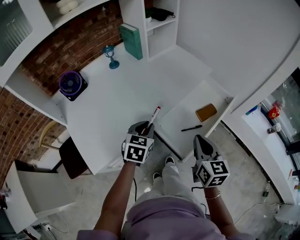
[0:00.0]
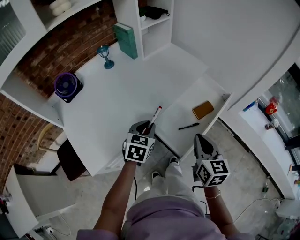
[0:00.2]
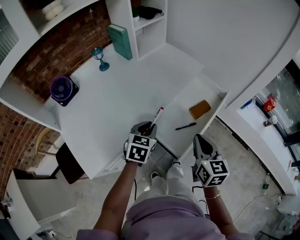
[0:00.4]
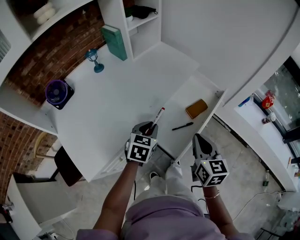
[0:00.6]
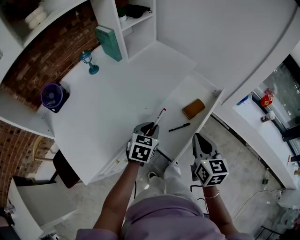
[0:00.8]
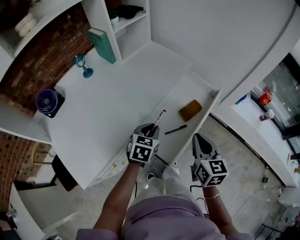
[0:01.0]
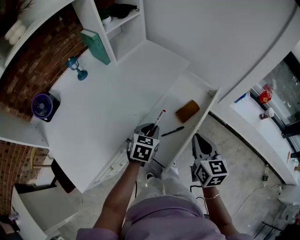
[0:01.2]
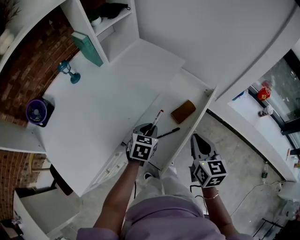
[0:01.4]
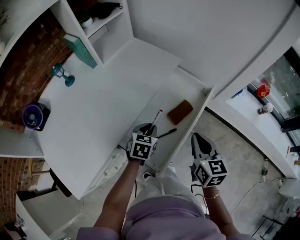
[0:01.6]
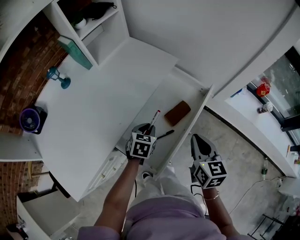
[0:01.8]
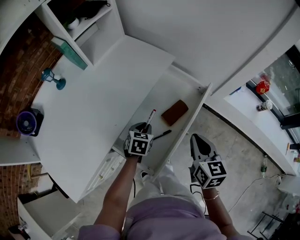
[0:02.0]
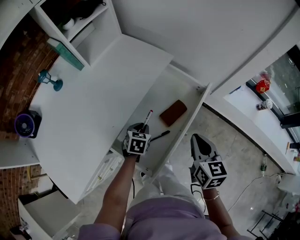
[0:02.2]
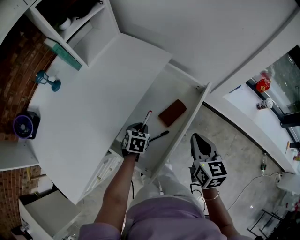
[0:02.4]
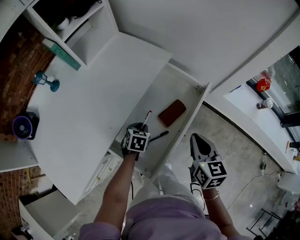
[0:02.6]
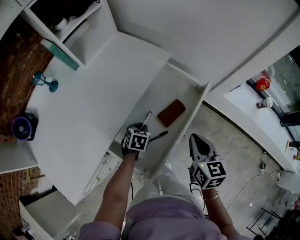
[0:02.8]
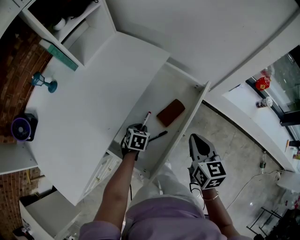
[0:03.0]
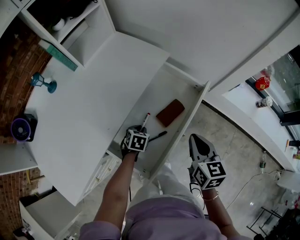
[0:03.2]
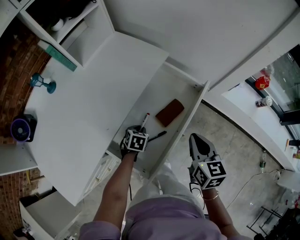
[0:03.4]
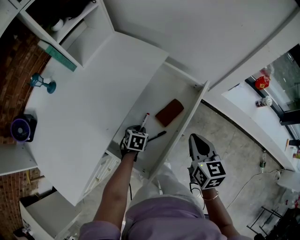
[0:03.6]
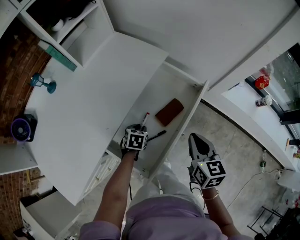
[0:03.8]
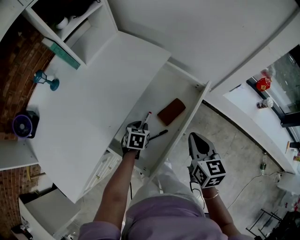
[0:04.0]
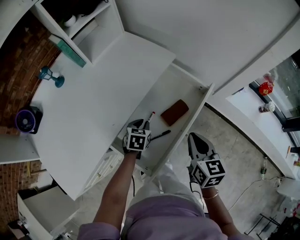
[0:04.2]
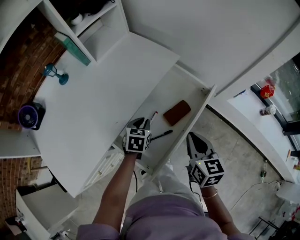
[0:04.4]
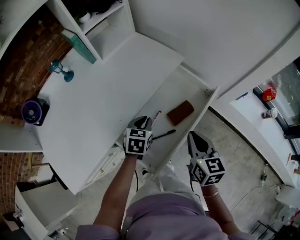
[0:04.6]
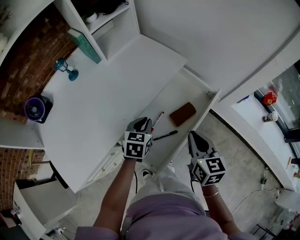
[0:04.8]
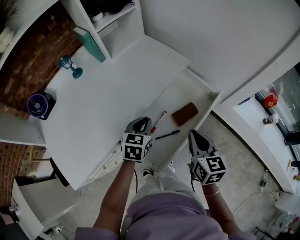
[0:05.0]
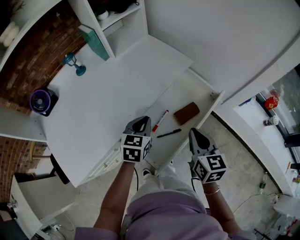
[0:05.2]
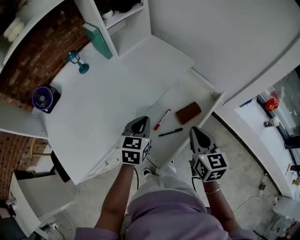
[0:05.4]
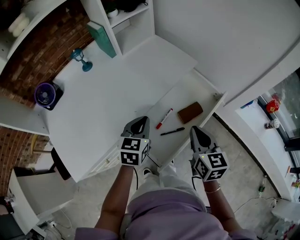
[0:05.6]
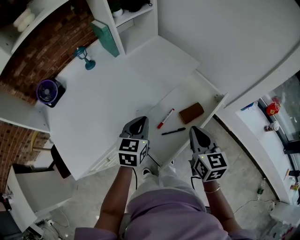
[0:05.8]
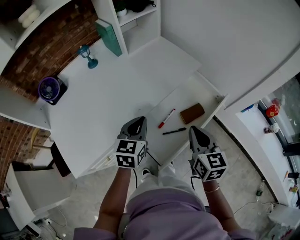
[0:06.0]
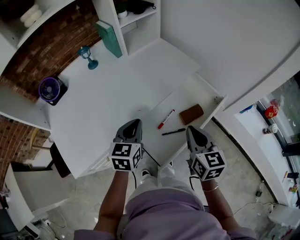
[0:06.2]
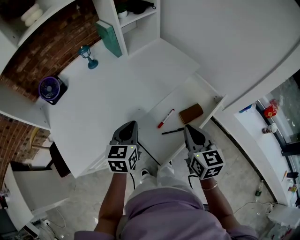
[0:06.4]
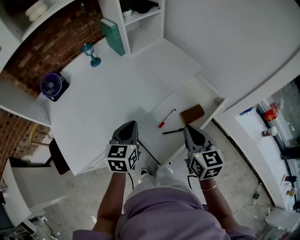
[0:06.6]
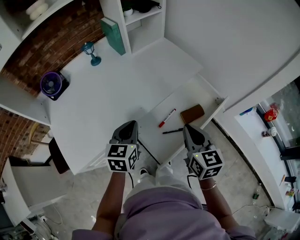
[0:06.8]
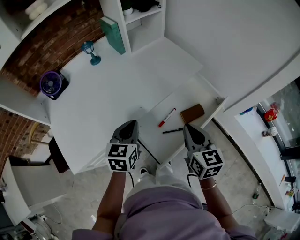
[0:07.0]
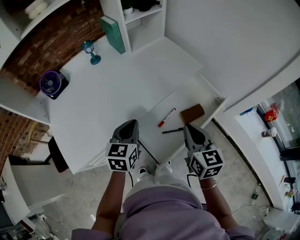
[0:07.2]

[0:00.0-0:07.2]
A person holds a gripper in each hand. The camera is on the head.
0:00.0 to 0:01.4: The left gripper shifts roughly 20 cm to the right, forward and downward; the right gripper shifts some 15 cm to the right and forward.
0:01.4 to 0:02.8: The left gripper goes about 15 cm downward and forward, while the right gripper travels forward and to the right by about 10 cm.
0:02.8 to 0:04.4: The left gripper heads upward, covering about 10 cm.
0:04.4 to 0:05.8: The left gripper shifts some 20 cm upward, to the left and backward, and turns by roughly 20 degrees, while the right gripper is displaced to the left by about 5 cm.
0:05.8 to 0:07.2: The left gripper travels to the left by some 5 cm.

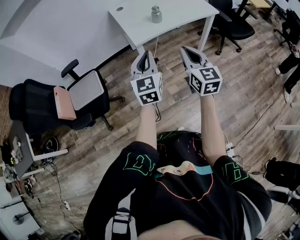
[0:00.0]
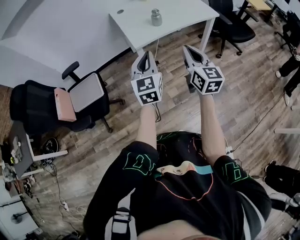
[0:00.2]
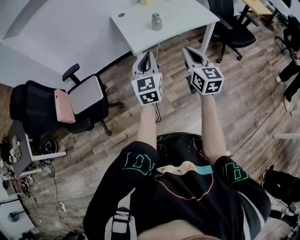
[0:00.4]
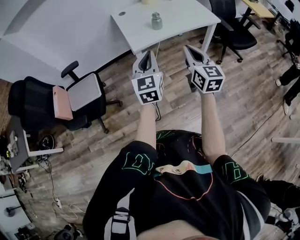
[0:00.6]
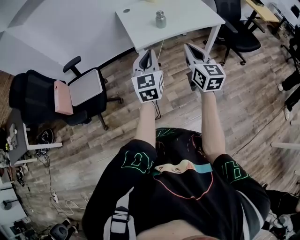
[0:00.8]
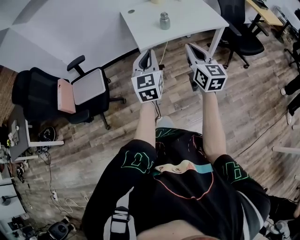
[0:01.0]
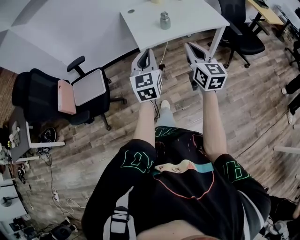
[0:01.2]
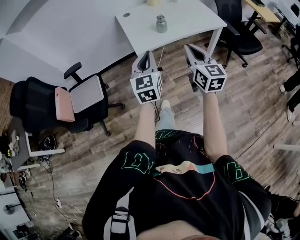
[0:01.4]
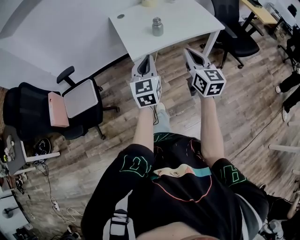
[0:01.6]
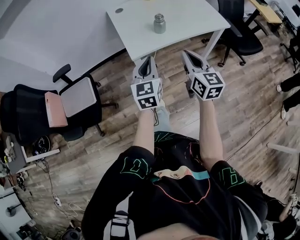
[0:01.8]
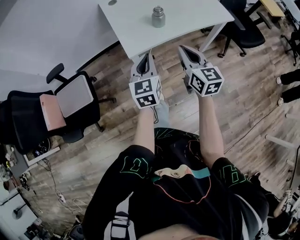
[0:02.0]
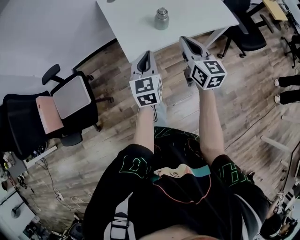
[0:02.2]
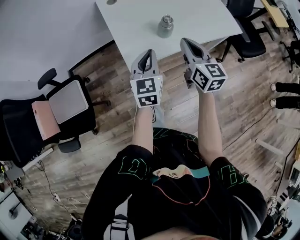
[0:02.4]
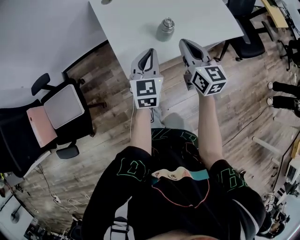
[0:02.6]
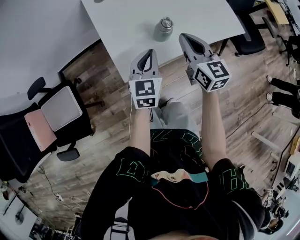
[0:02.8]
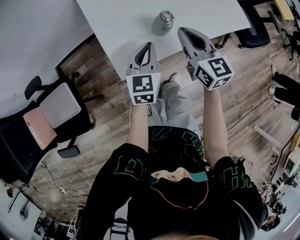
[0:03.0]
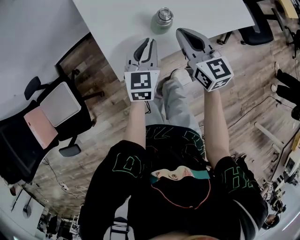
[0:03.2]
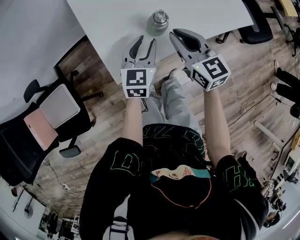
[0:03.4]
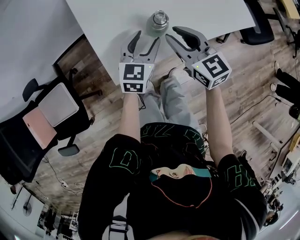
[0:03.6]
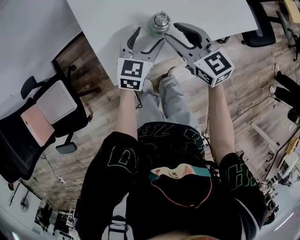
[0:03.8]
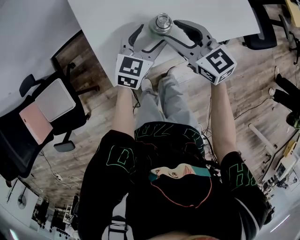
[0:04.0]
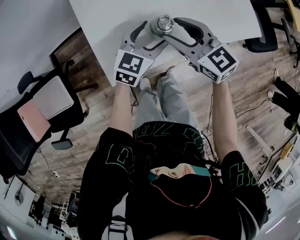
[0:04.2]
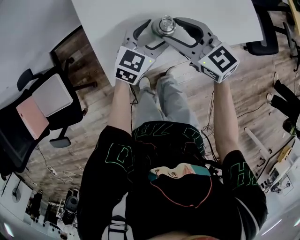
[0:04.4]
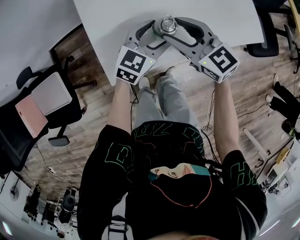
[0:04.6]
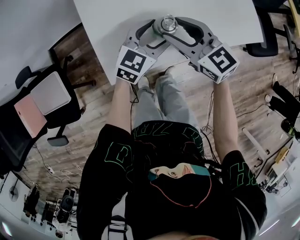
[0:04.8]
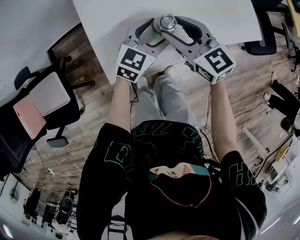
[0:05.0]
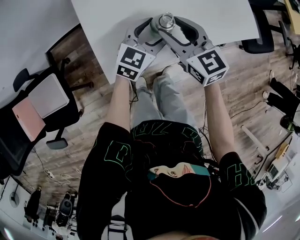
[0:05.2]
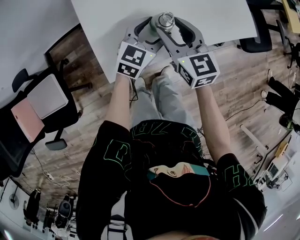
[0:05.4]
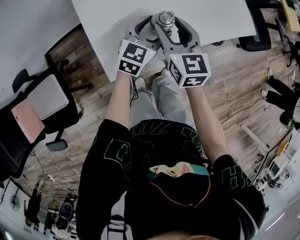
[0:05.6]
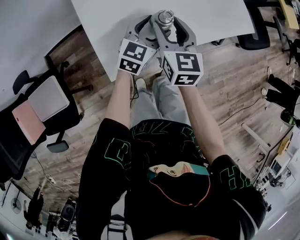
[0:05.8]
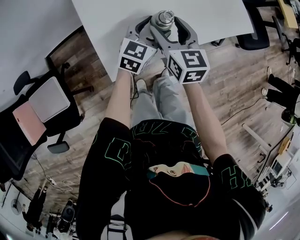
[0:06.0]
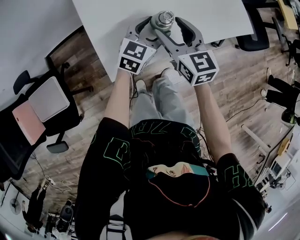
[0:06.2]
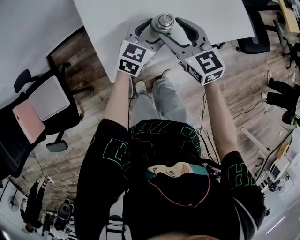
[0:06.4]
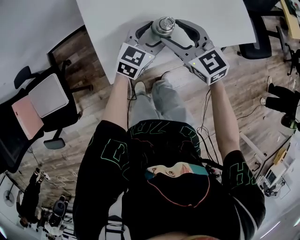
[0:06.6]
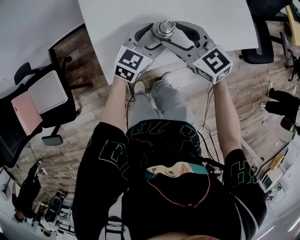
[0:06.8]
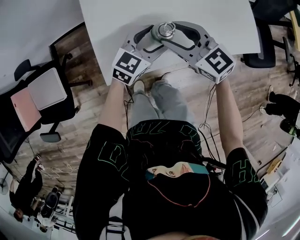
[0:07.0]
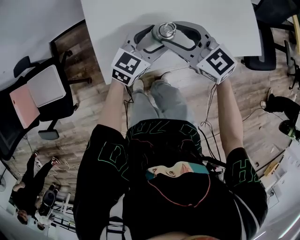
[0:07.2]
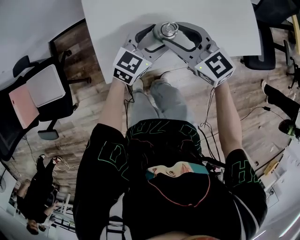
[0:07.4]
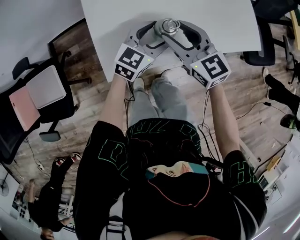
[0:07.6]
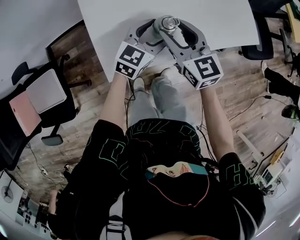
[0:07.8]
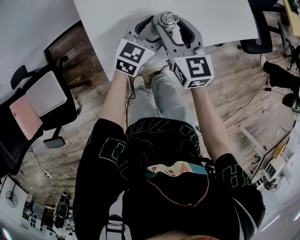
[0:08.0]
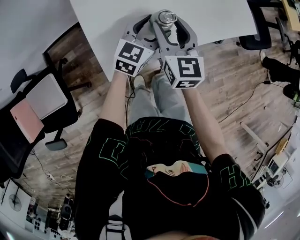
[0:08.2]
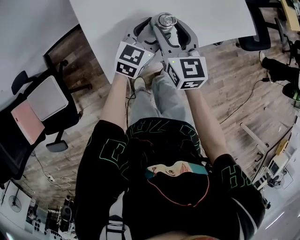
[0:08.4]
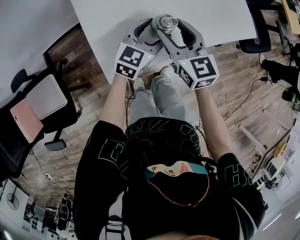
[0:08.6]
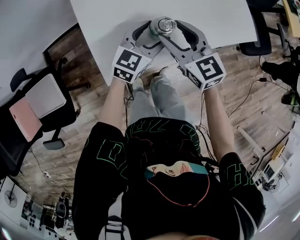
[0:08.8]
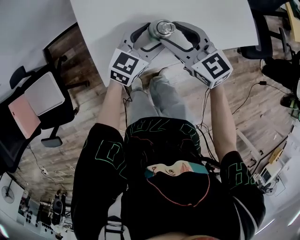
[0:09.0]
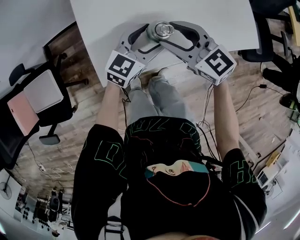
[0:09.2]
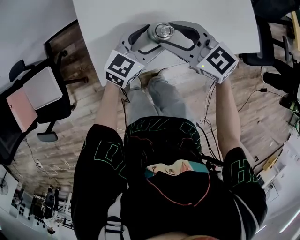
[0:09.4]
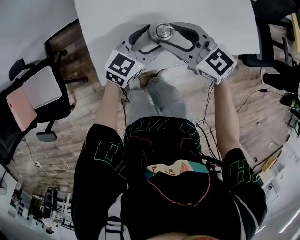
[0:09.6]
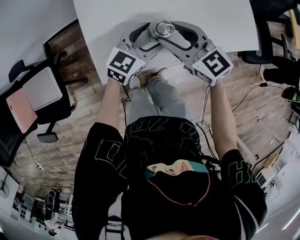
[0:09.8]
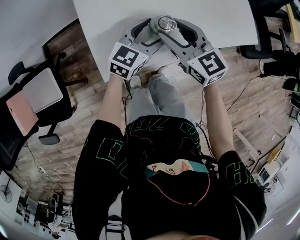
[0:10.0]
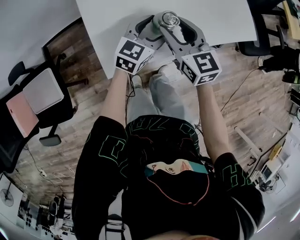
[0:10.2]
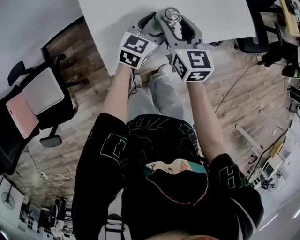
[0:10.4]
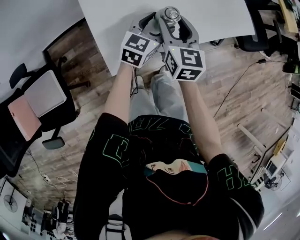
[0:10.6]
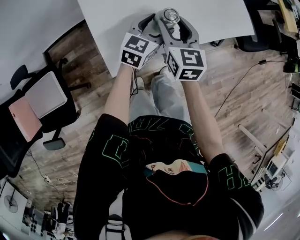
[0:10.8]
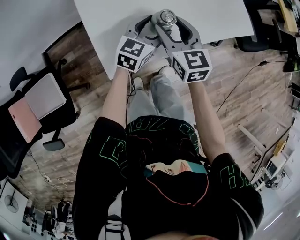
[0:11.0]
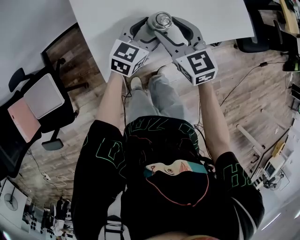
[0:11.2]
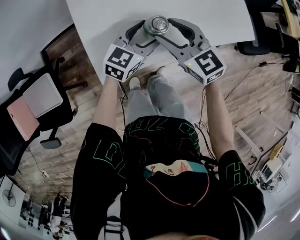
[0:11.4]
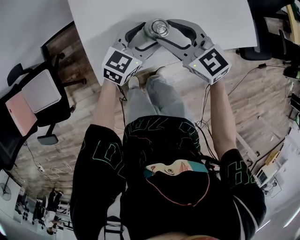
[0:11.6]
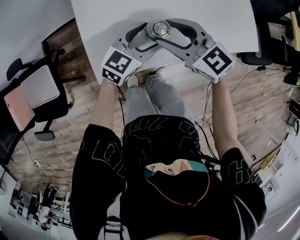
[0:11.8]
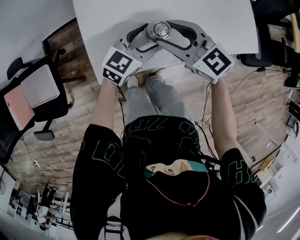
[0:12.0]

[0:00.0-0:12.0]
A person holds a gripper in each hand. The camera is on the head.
0:00.0 to 0:01.6: The left gripper is displaced forward by approximately 10 cm. Meanwhile the right gripper heads forward and to the right, covering some 10 cm.
0:01.6 to 0:03.0: The left gripper heads forward and downward, covering some 30 cm. Meanwhile the right gripper moves forward, roughly 30 cm.
0:03.0 to 0:04.4: The right gripper moves some 5 cm, turns by roughly 30 degrees, and opens its fingers; the left gripper travels forward and to the right by roughly 10 cm, swivels approximately 20 degrees, and opens.
0:04.4 to 0:06.0: The right gripper swivels approximately 40 degrees.
0:06.0 to 0:07.6: The right gripper changes its angle by about 30 degrees.
0:09.0 to 0:10.4: The right gripper swivels approximately 30 degrees.
0:10.4 to 0:12.0: The right gripper swivels approximately 50 degrees.

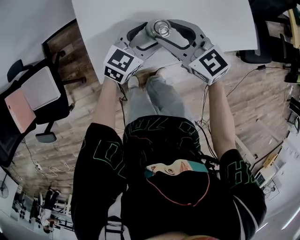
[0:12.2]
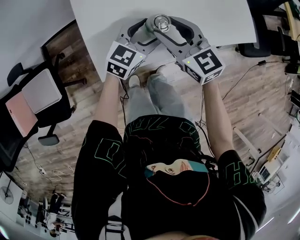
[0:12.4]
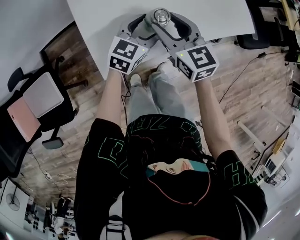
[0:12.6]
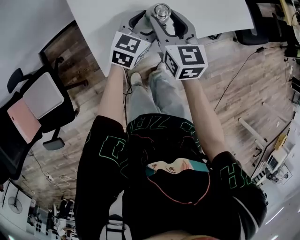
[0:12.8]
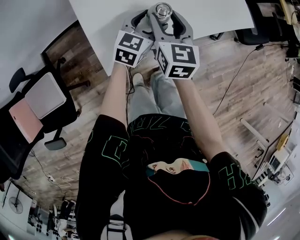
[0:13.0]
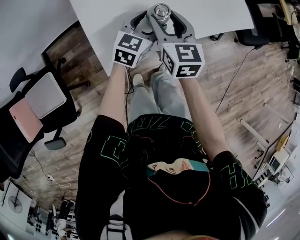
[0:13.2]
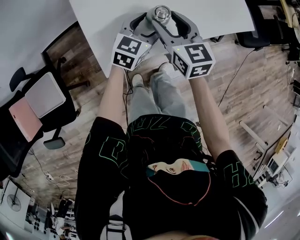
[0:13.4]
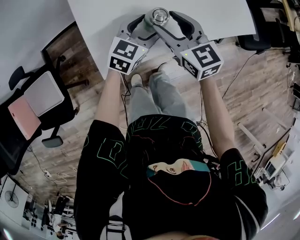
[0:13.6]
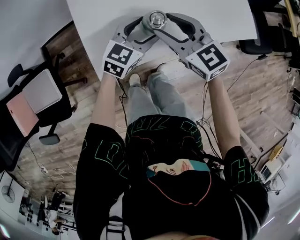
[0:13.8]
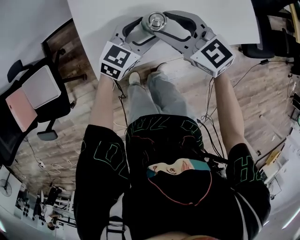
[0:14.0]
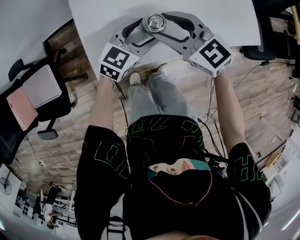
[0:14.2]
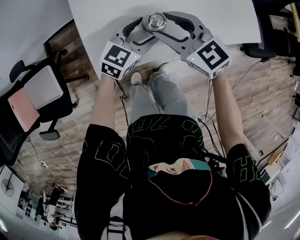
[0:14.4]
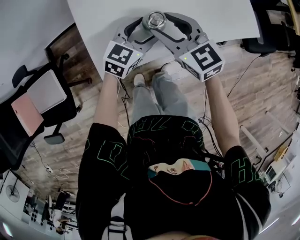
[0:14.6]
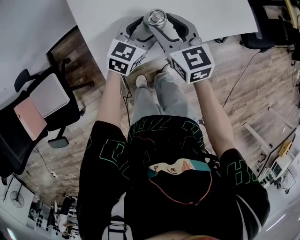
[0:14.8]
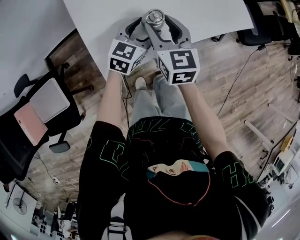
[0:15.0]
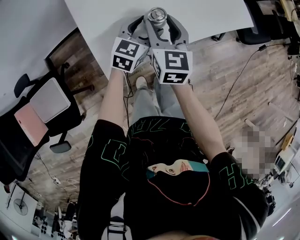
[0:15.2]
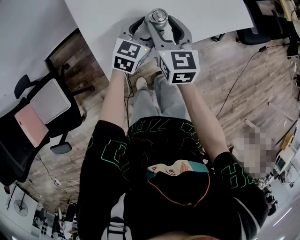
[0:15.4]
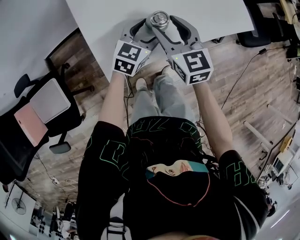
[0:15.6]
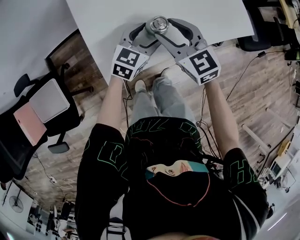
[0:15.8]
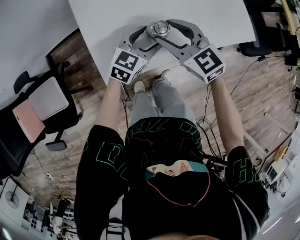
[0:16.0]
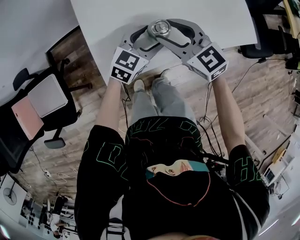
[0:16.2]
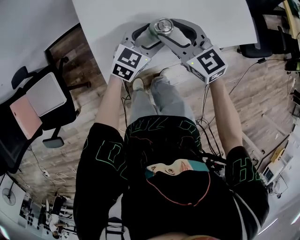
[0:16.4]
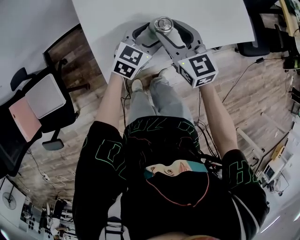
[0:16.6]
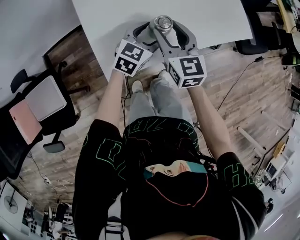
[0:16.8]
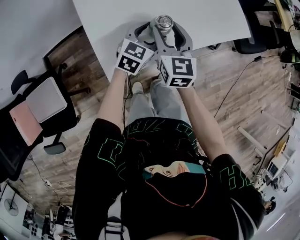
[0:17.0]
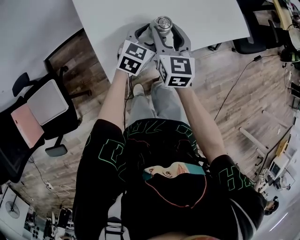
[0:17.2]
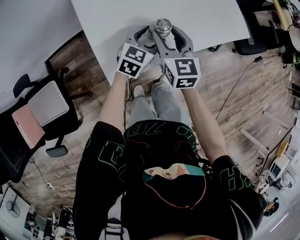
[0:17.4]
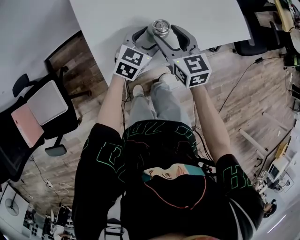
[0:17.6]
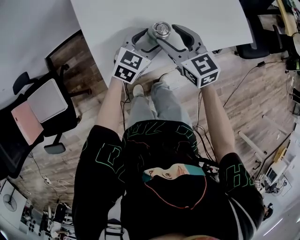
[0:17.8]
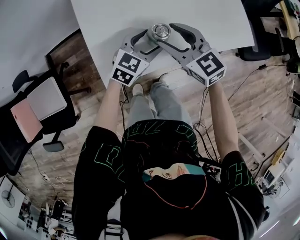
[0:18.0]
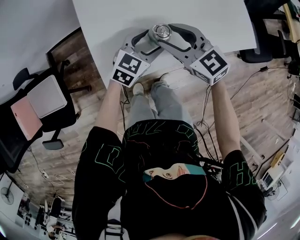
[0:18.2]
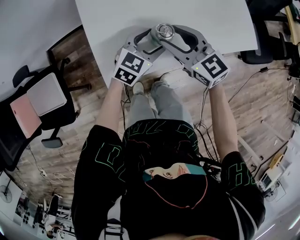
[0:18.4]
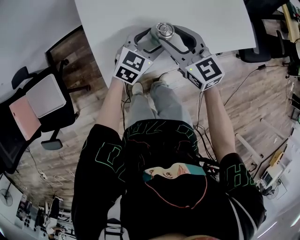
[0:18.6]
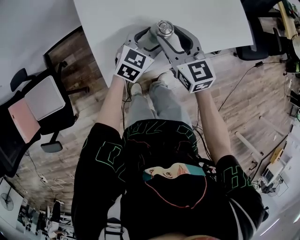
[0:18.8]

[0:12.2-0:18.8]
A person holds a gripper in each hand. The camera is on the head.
0:13.8 to 0:15.4: The right gripper rotates some 40 degrees.
0:17.2 to 0:18.8: The right gripper turns by approximately 20 degrees.
